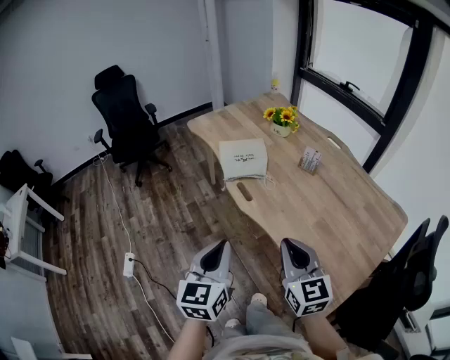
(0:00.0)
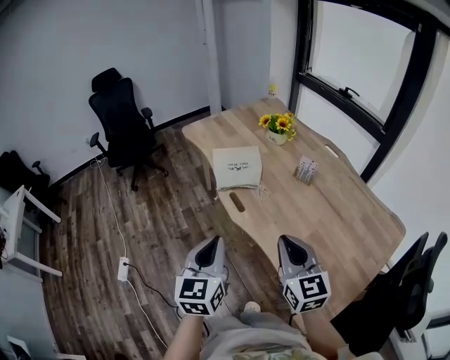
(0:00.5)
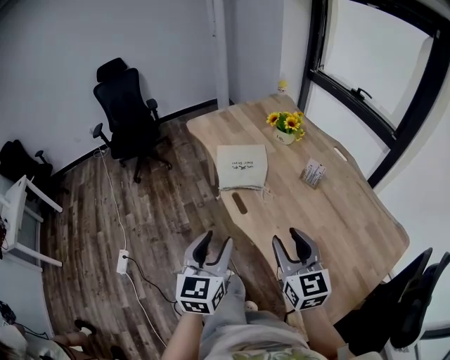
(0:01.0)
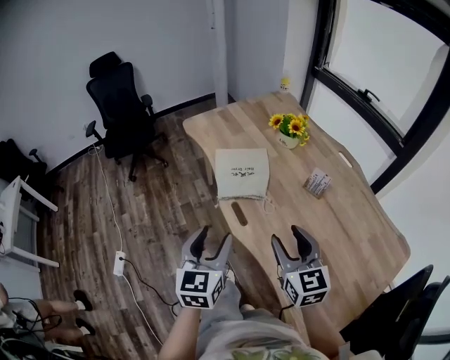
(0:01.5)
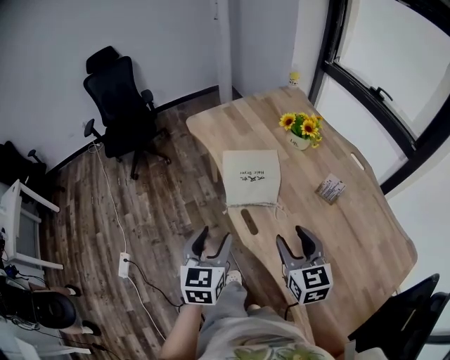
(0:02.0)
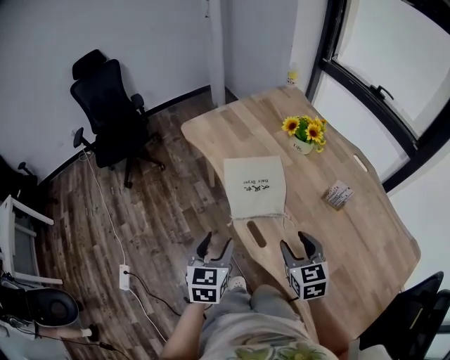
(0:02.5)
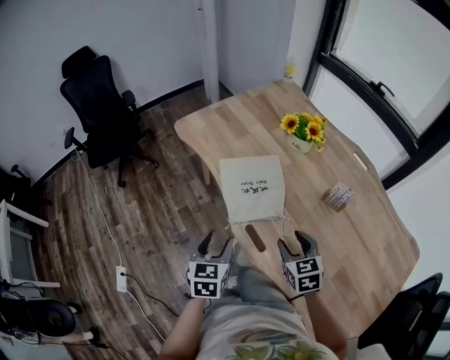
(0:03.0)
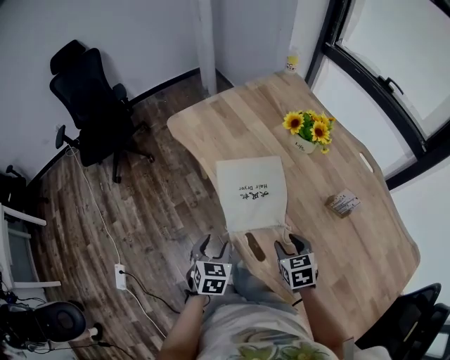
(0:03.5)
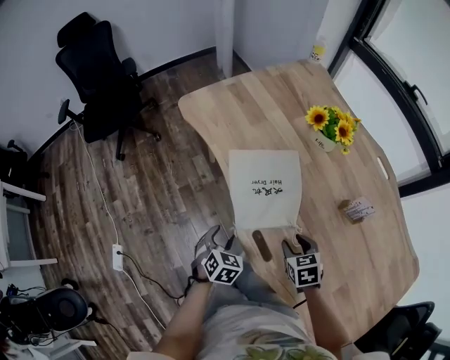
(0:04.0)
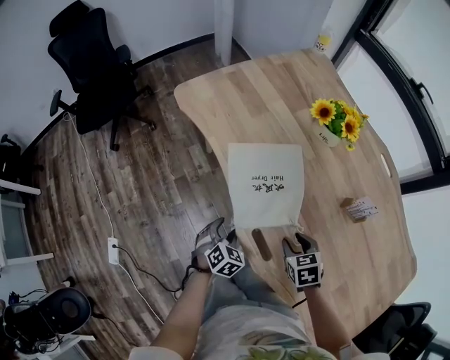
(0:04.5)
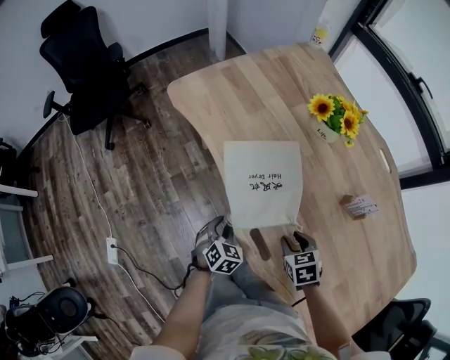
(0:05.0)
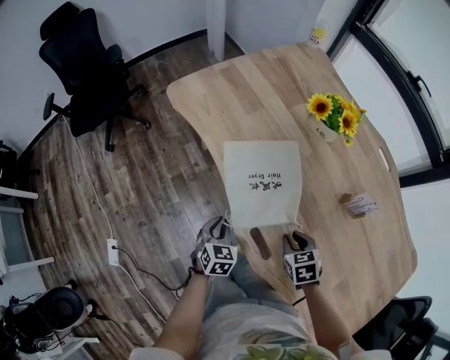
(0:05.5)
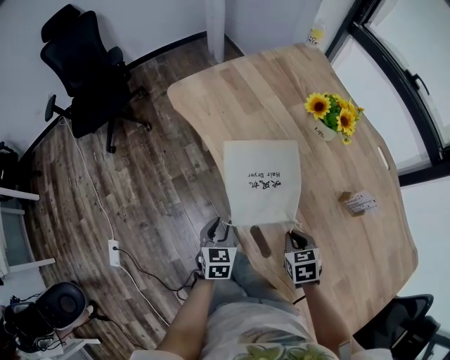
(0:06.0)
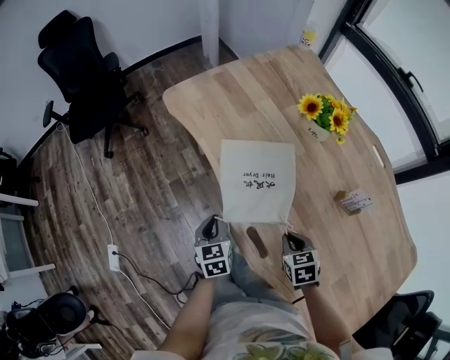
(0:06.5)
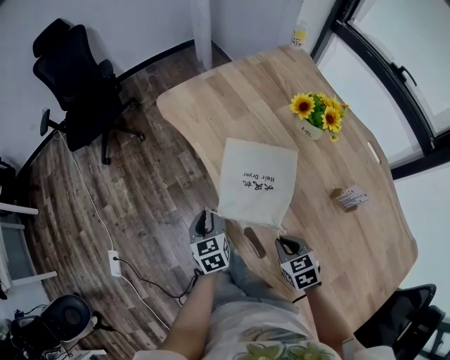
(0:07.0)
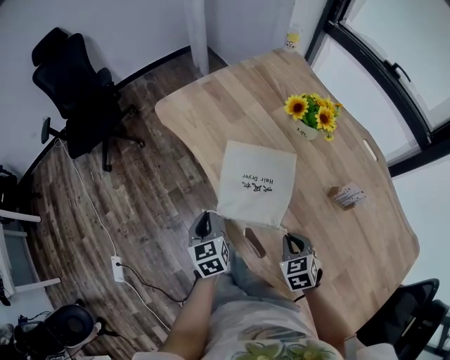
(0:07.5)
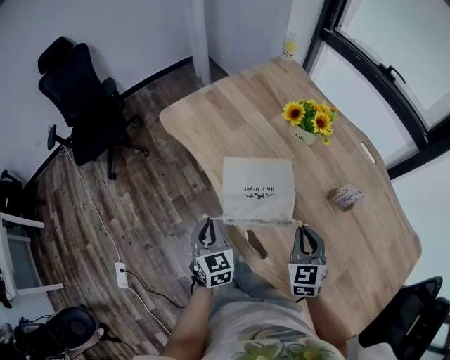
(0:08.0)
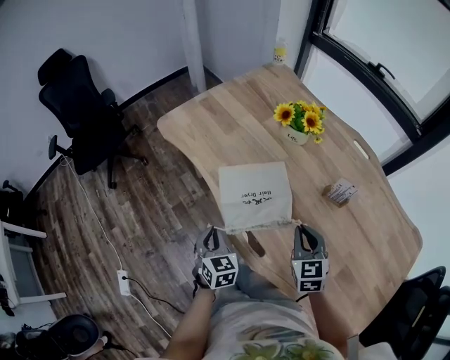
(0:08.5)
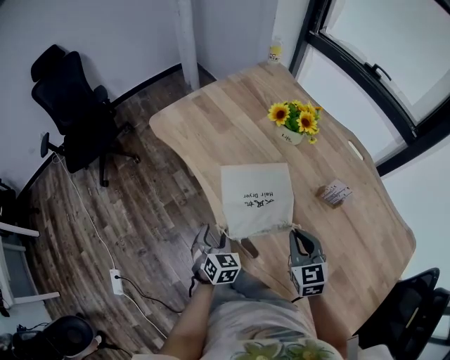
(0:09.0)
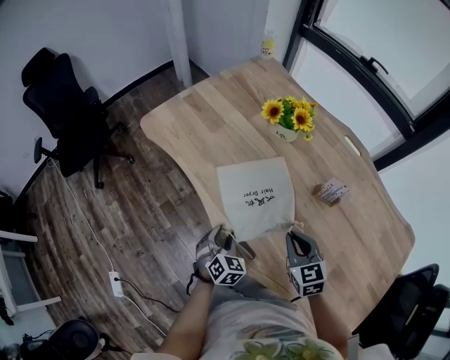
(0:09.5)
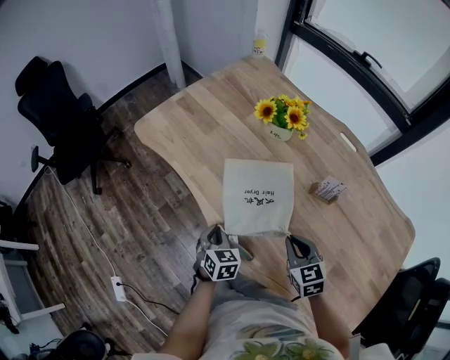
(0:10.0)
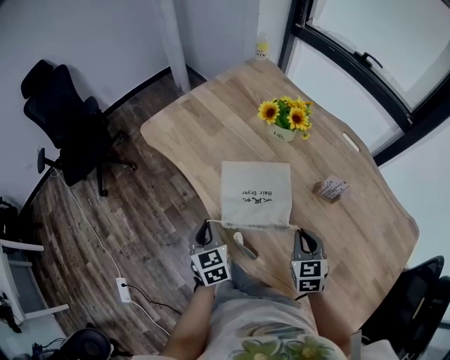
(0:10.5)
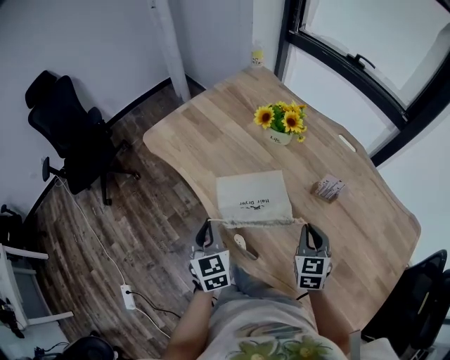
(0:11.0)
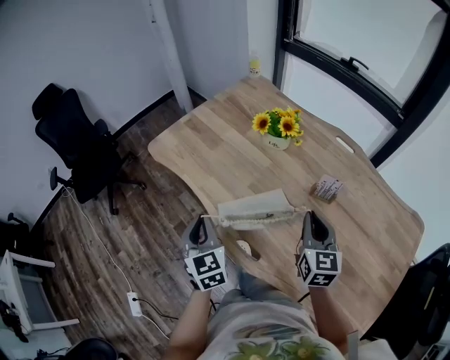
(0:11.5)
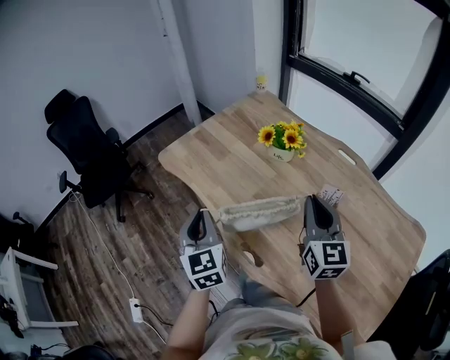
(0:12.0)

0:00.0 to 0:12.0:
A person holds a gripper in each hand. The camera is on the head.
0:00.0 to 0:02.0: Both grippers move forward, some 25 cm. The right gripper opens, while the left gripper opens up.
0:02.0 to 0:04.0: Both grippers travel together downward and forward, approximately 30 cm. The left gripper tilts its fingers roughly 30 degrees downward; the right gripper tips its fingers downward by about 40 degrees.
0:04.0 to 0:06.0: The left gripper rotates about 20 degrees, and closes up; the right gripper closes its fingers.
0:06.0 to 0:08.0: Both grippers travel together upward, roughly 10 cm. The right gripper tips its fingers upward by approximately 30 degrees; the left gripper closes its fingers.
0:08.0 to 0:10.0: The left gripper travels to the right and downward by approximately 10 cm, turns by roughly 20 degrees, and opens, then closes once more; the right gripper shifts by roughly 5 cm.
0:10.0 to 0:12.0: The two grippers go about 25 cm upward. The right gripper angles its fingers upward, by roughly 30 degrees, while the left gripper tips its fingers upward by approximately 30 degrees.

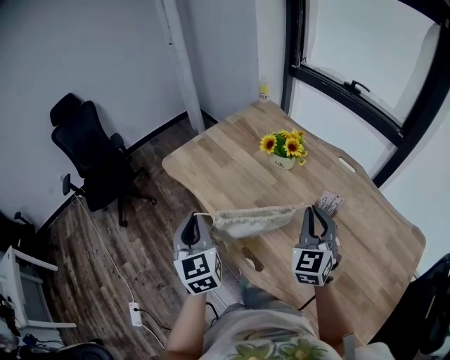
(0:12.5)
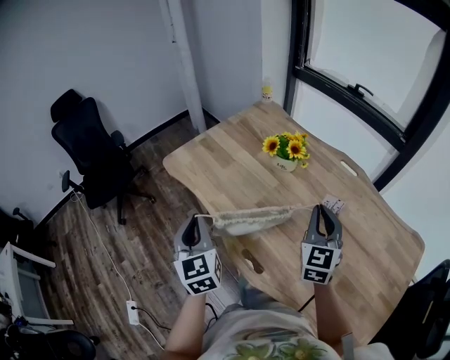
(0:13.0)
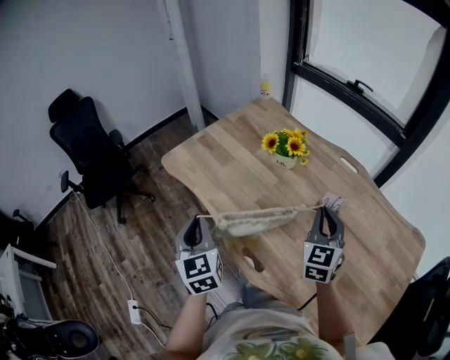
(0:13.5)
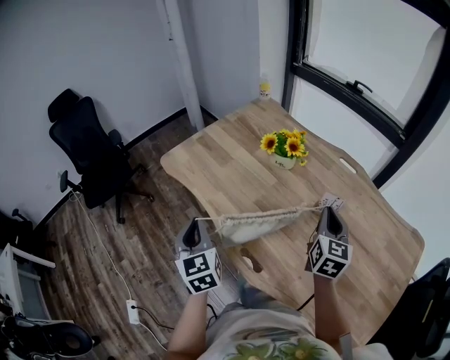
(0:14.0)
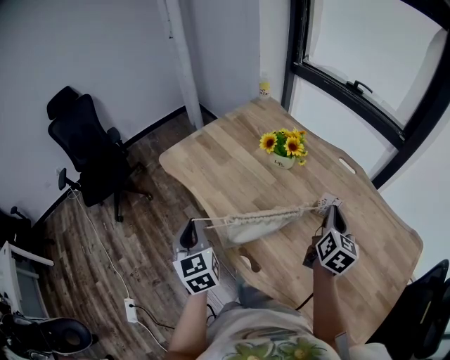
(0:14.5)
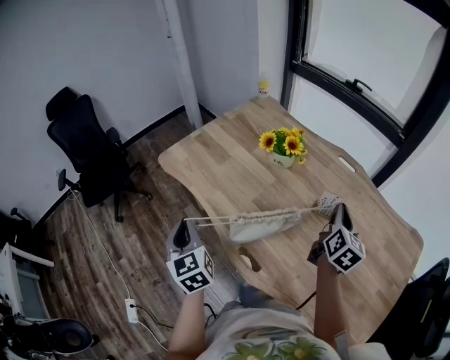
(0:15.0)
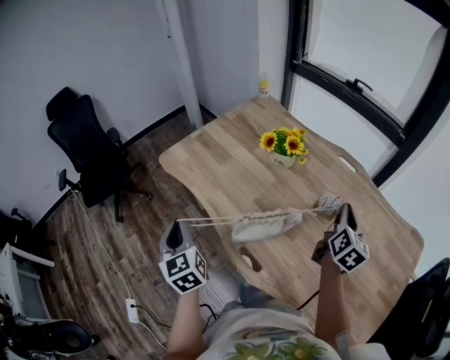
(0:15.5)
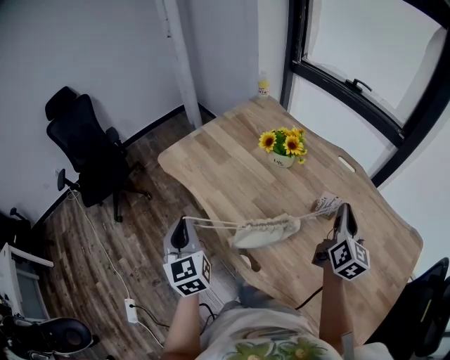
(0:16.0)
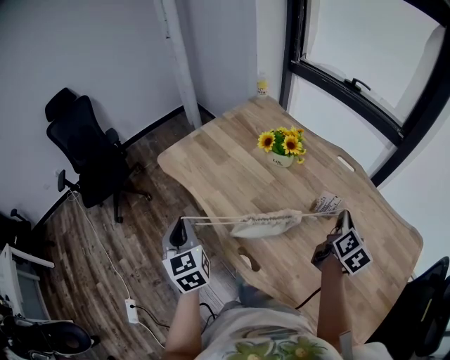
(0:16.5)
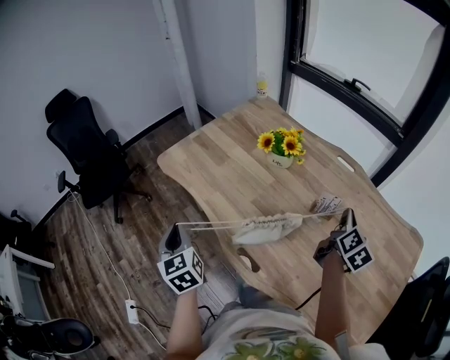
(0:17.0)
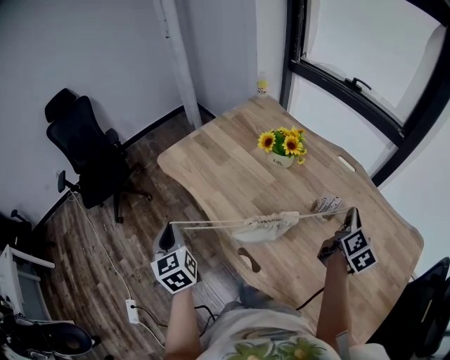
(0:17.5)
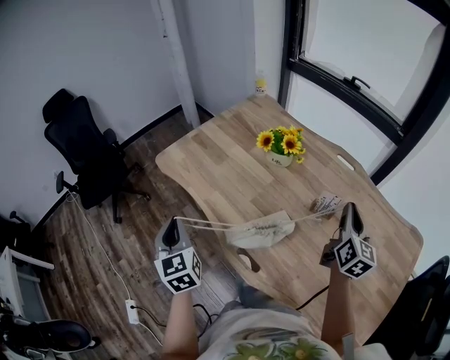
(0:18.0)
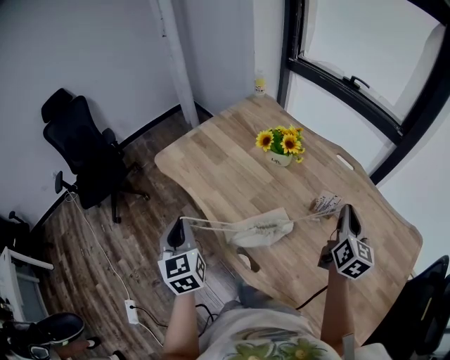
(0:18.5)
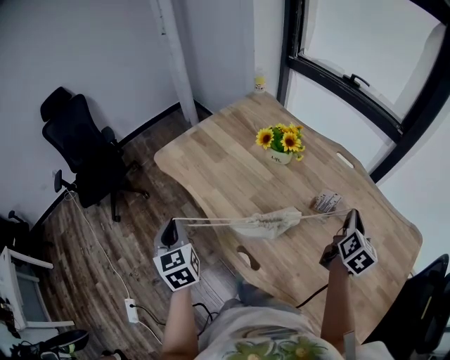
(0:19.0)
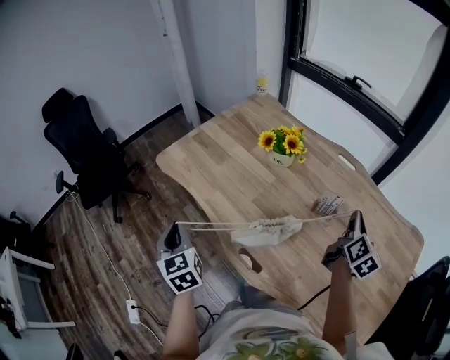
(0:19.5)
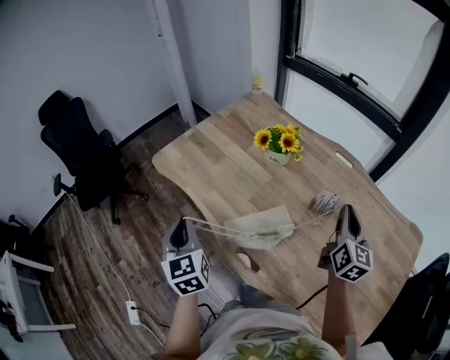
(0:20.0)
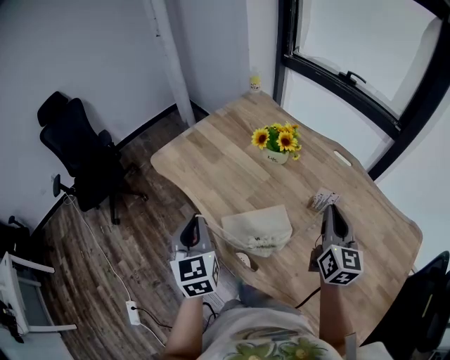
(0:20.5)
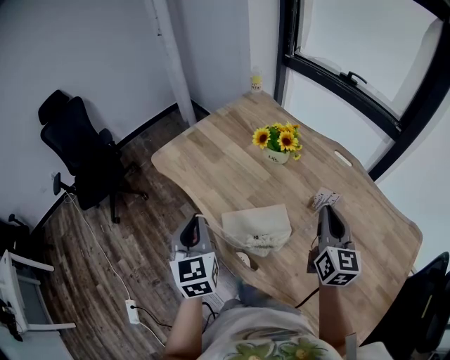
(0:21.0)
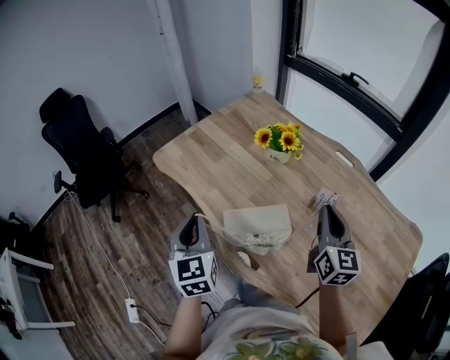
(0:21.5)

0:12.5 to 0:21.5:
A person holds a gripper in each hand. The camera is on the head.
0:12.5 to 0:14.5: The right gripper goes some 10 cm to the right, and rolls clockwise, seen from behind, by about 50 degrees.
0:14.5 to 0:17.0: The right gripper travels to the right by some 5 cm, and changes its angle by roughly 20 degrees.
0:19.5 to 0:21.5: The right gripper is displaced to the left by roughly 15 cm, and turns by roughly 30 degrees. The left gripper goes about 10 cm to the right.

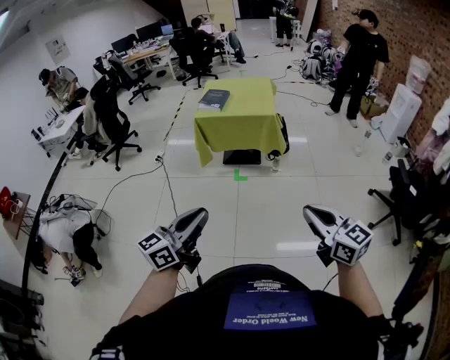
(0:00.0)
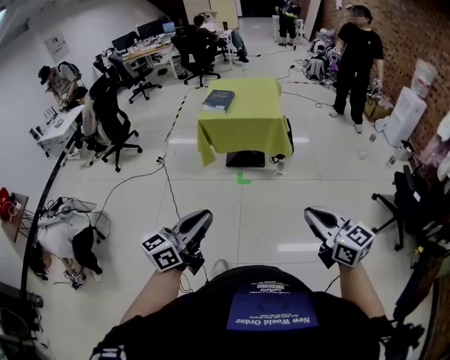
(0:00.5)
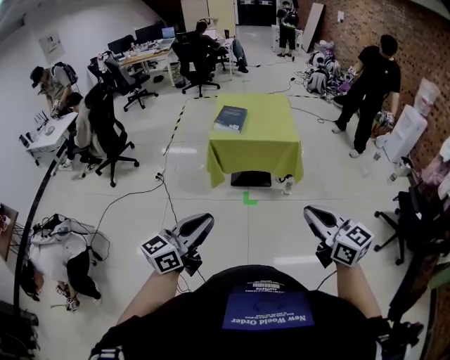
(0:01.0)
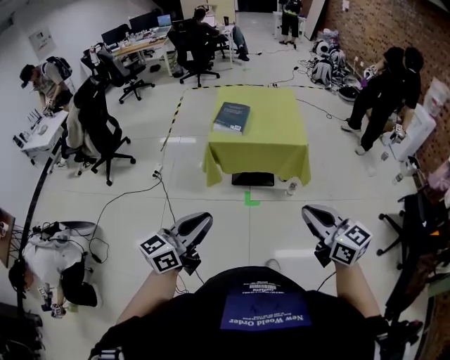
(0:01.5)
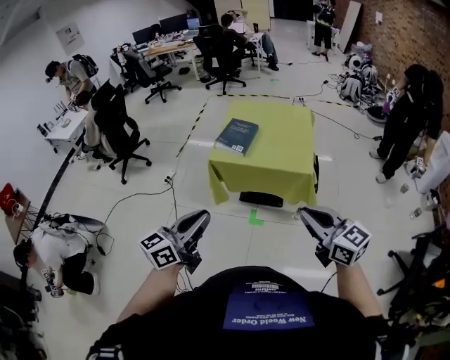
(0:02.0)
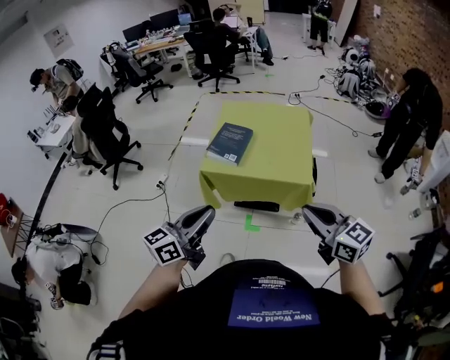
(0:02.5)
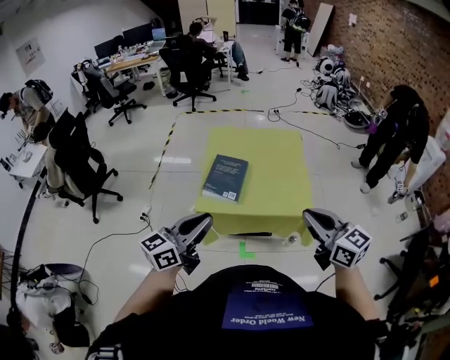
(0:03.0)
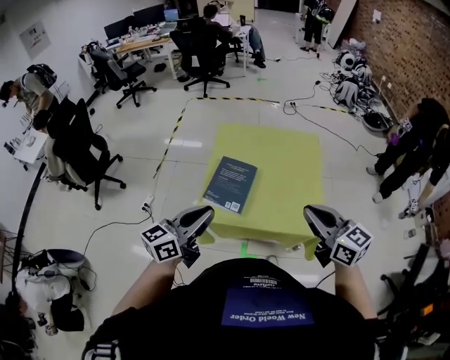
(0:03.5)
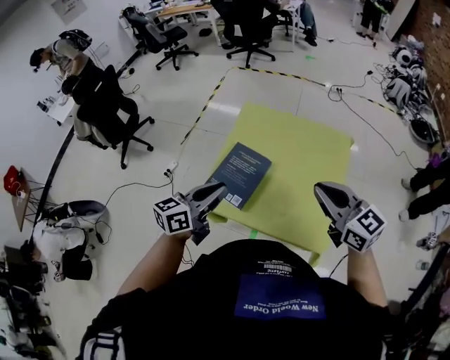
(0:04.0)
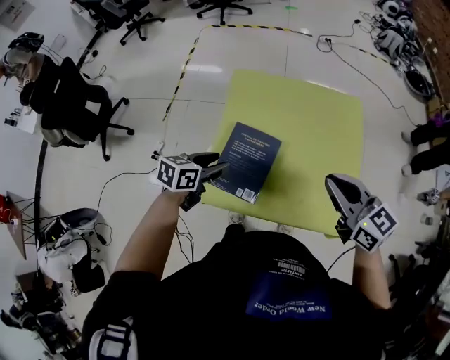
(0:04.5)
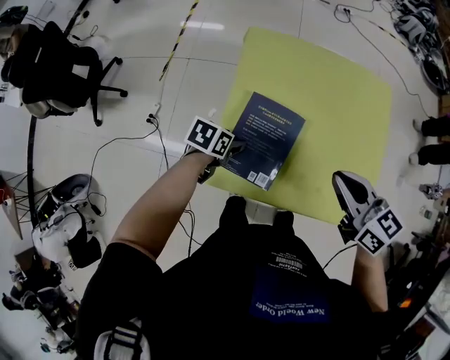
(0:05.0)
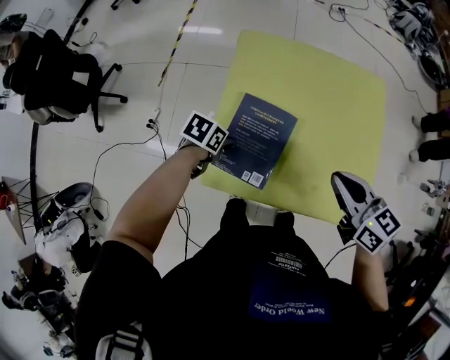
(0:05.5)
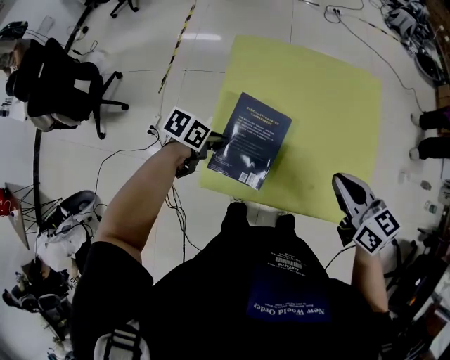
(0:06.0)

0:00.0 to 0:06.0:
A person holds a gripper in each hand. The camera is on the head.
0:00.0 to 0:02.0: Both grippers are carried forward, some 50 cm.
0:02.0 to 0:04.0: The pair of grippers is taken forward, some 50 cm.
0:04.0 to 0:06.0: The right gripper travels downward by some 15 cm, and rotates about 30 degrees; the left gripper shifts approximately 25 cm downward, angles its fingers downward, by roughly 40 degrees, and opens, then closes once more.
